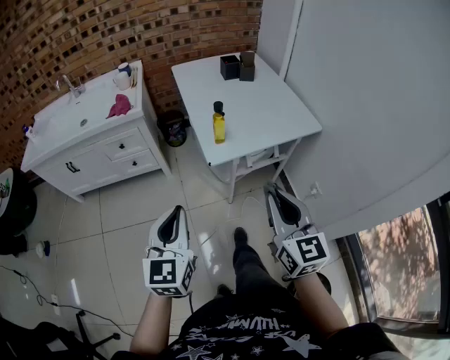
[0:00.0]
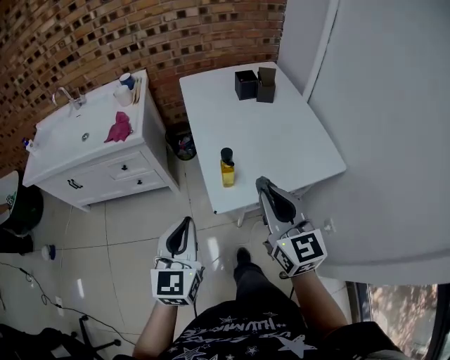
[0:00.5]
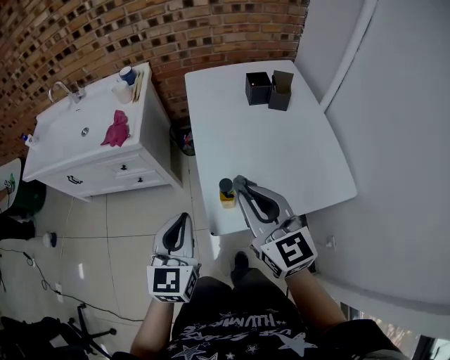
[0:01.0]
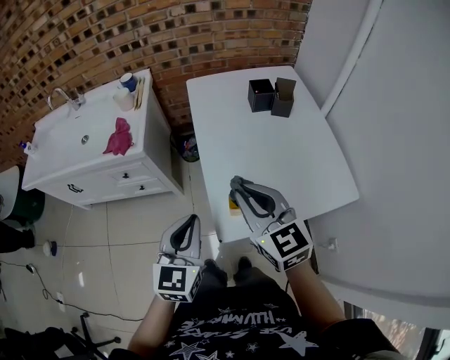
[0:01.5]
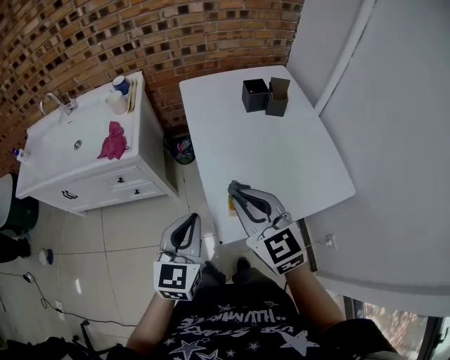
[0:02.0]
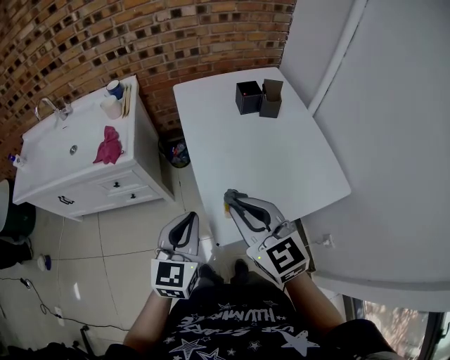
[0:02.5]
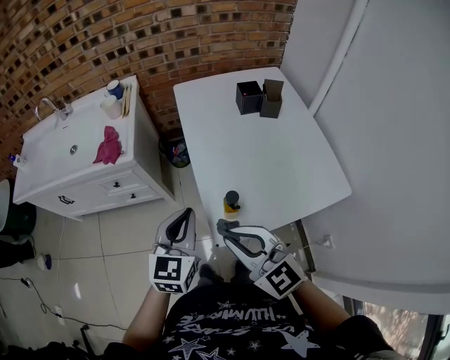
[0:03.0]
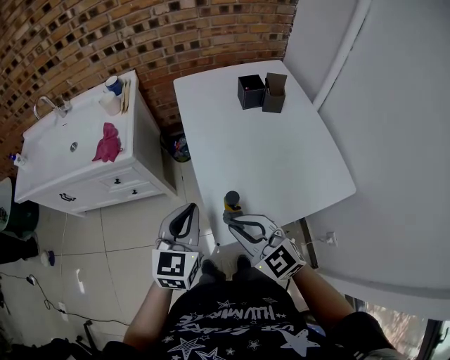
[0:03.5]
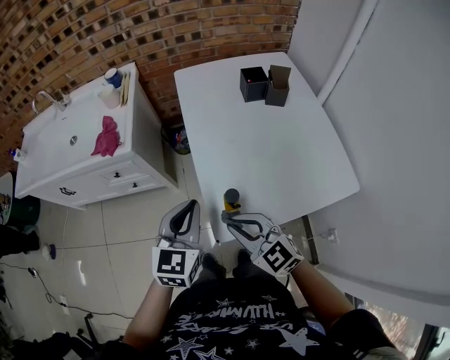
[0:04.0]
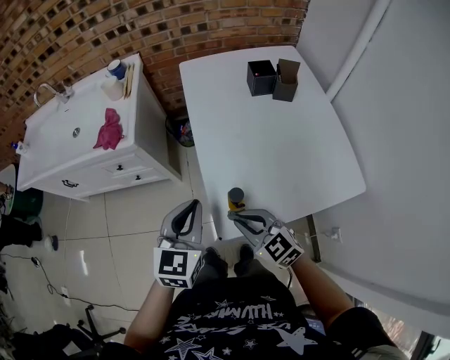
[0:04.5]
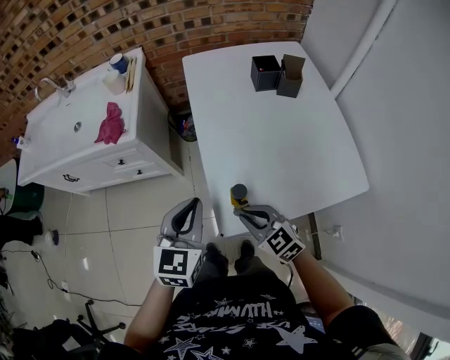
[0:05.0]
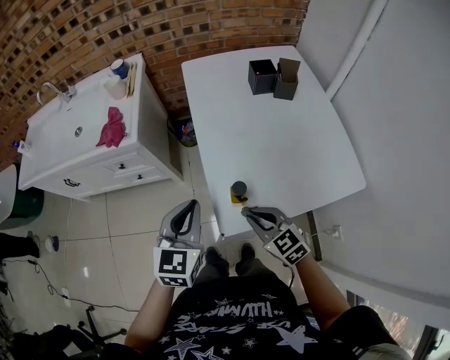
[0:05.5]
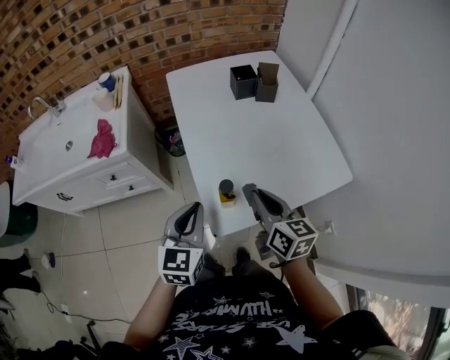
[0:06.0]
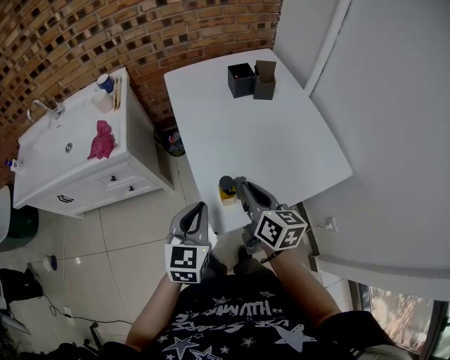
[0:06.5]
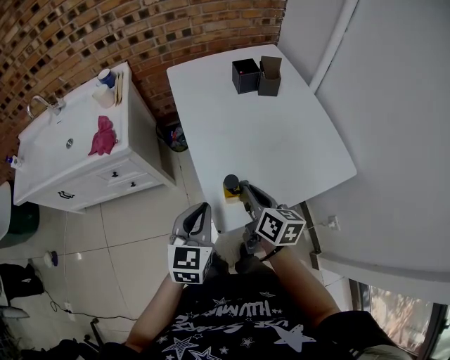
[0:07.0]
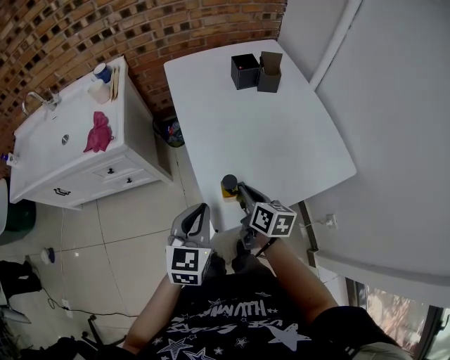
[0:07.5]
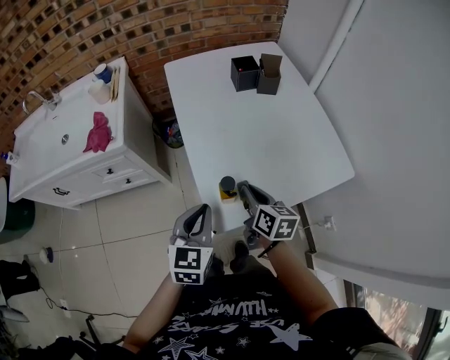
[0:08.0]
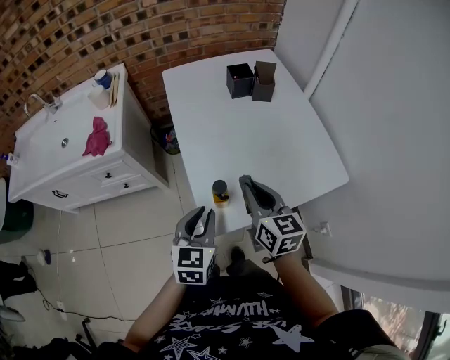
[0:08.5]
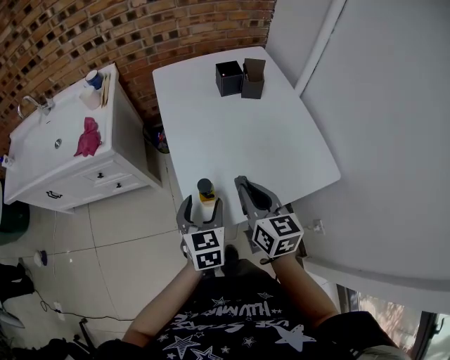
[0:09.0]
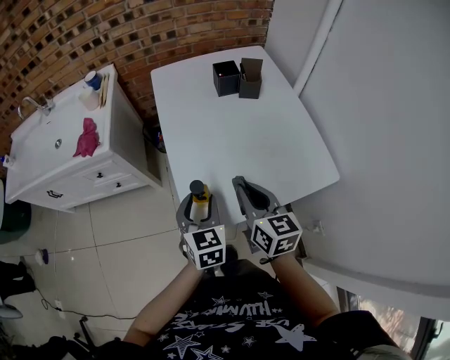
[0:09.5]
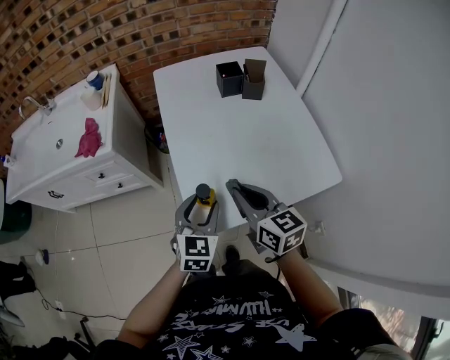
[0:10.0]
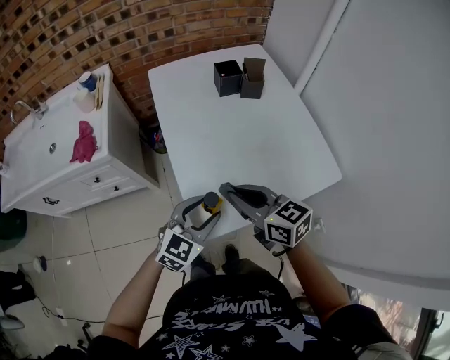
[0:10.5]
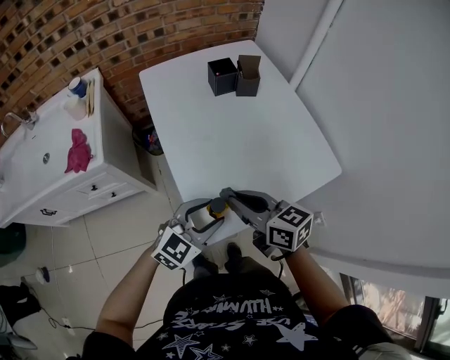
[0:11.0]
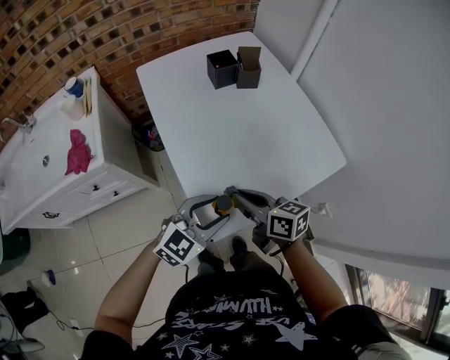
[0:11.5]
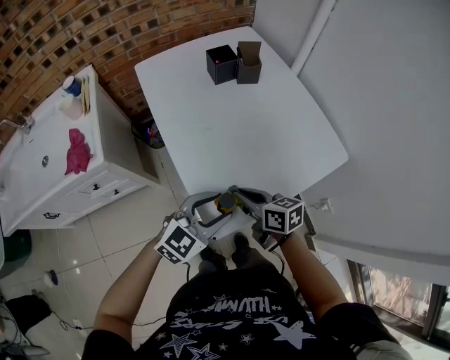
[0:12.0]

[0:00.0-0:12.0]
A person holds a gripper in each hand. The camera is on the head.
0:00.0 to 0:02.0: Both grippers move forward, about 30 cm. The right gripper changes its angle by about 30 degrees.
0:02.0 to 0:04.0: The right gripper goes about 10 cm downward, and changes its angle by about 20 degrees.
0:04.0 to 0:06.0: The right gripper heads to the right, covering roughly 10 cm, and rotates around the line of its fingers by approximately 50 degrees, clockwise from behind.
0:06.0 to 0:08.0: The right gripper travels downward by roughly 10 cm.
0:08.0 to 0:10.0: The left gripper goes some 5 cm to the right, and opens. Meanwhile the right gripper goes roughly 10 cm upward, and swivels approximately 30 degrees.
0:10.0 to 0:12.0: The left gripper rotates about 50 degrees, while the right gripper goes approximately 10 cm downward, and rotates some 20 degrees.

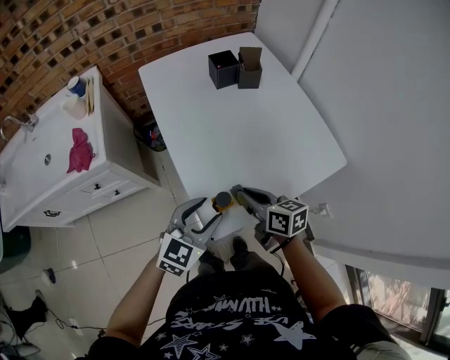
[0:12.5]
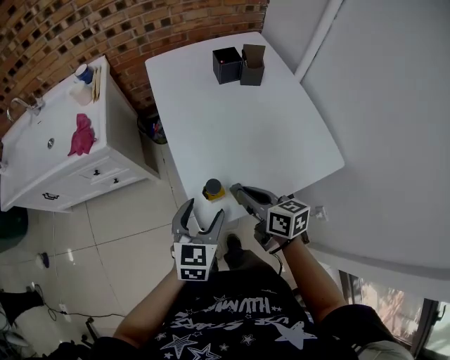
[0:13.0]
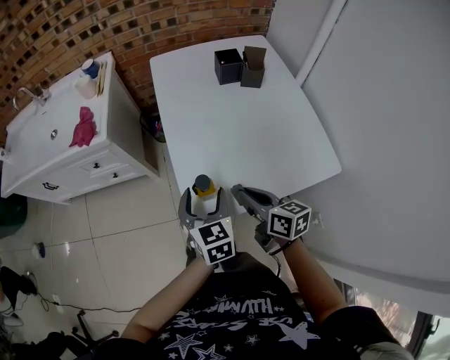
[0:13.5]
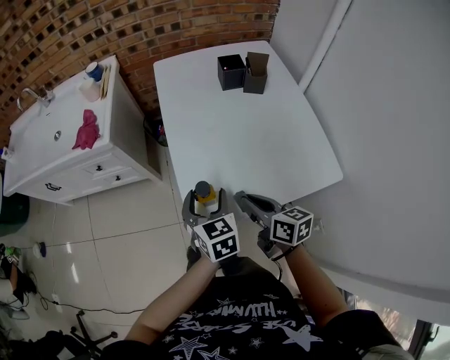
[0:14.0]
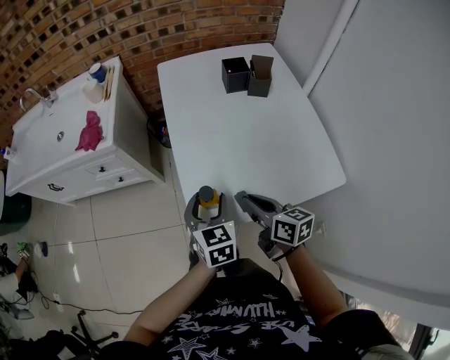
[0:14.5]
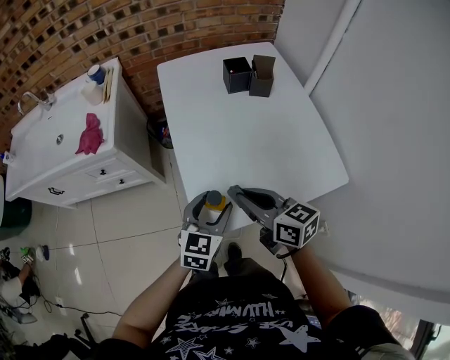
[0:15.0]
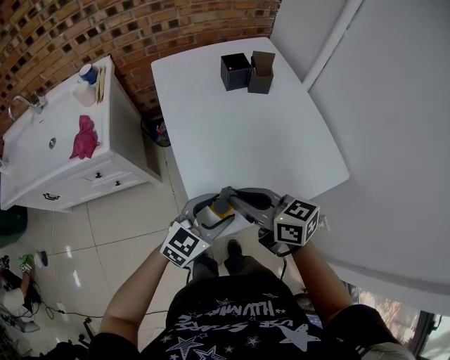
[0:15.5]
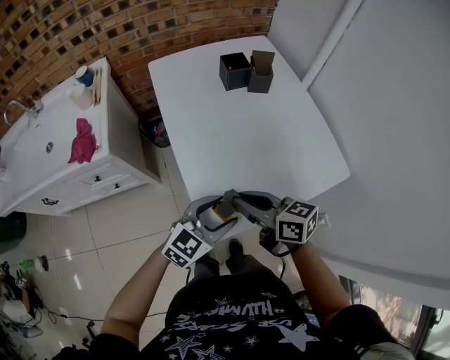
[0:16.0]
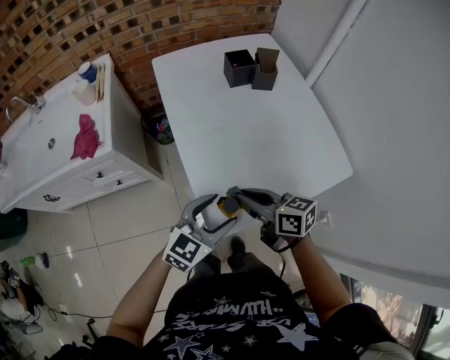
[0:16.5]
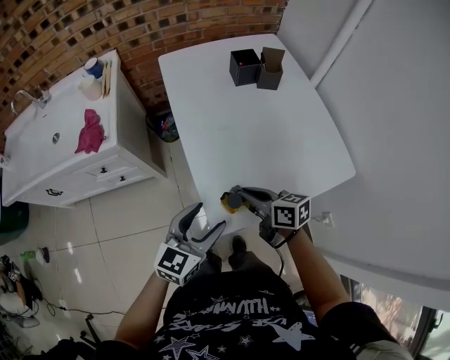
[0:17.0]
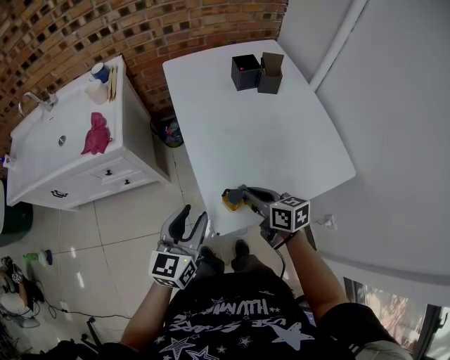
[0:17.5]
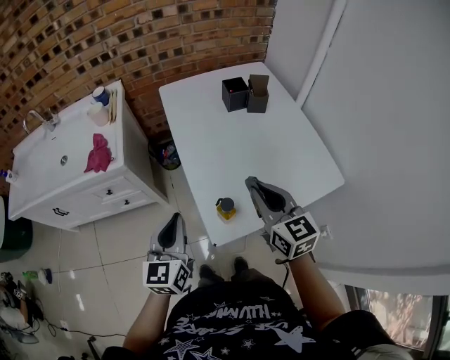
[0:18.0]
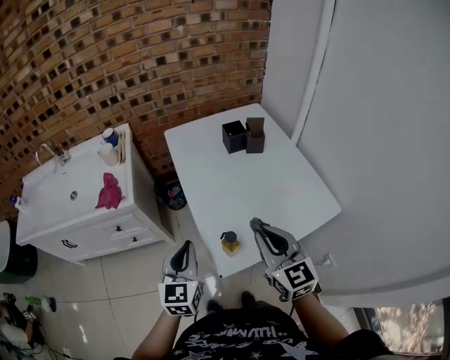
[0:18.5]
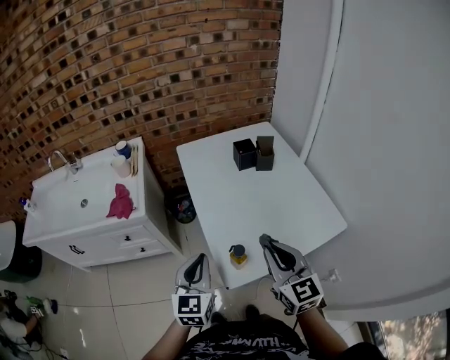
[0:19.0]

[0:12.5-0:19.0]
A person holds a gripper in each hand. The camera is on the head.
0:12.5 to 0:14.5: The left gripper rotates roughly 50 degrees.
0:14.5 to 0:17.0: The left gripper shifts by some 5 cm, and swivels approximately 40 degrees; the right gripper travels upward and back again, roughly 5 cm each way.
0:17.0 to 0:19.0: The right gripper goes roughly 20 cm upward, and turns by about 50 degrees. The left gripper is displaced upward and to the left by about 10 cm, turns by approximately 30 degrees, and closes.

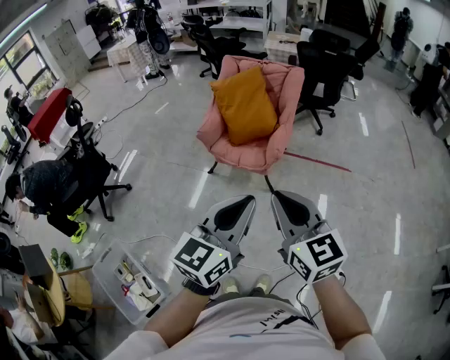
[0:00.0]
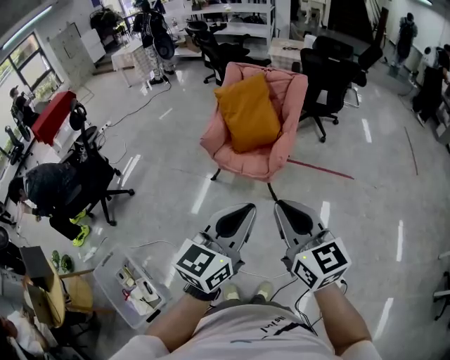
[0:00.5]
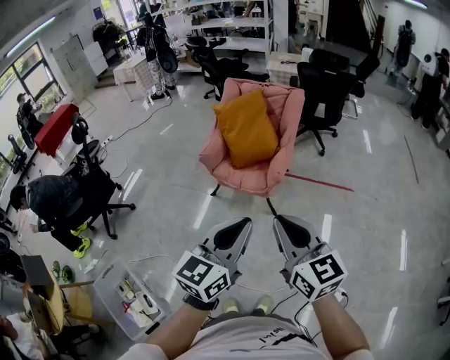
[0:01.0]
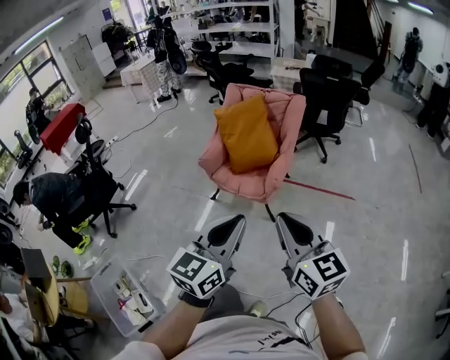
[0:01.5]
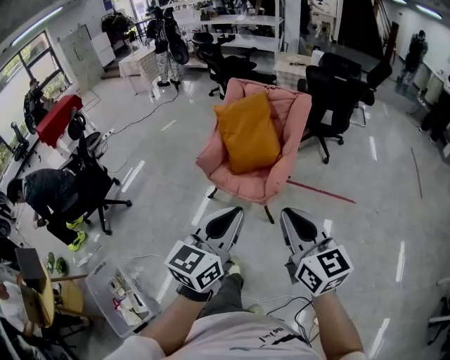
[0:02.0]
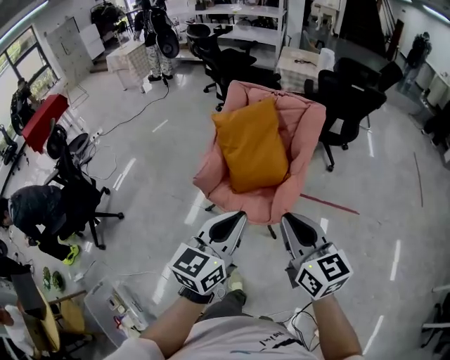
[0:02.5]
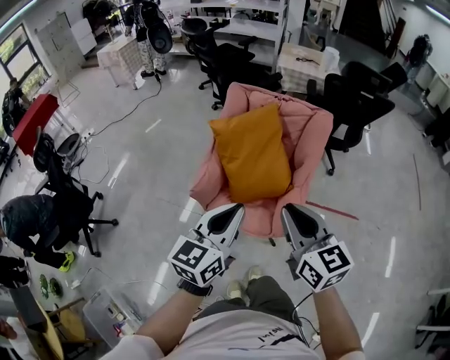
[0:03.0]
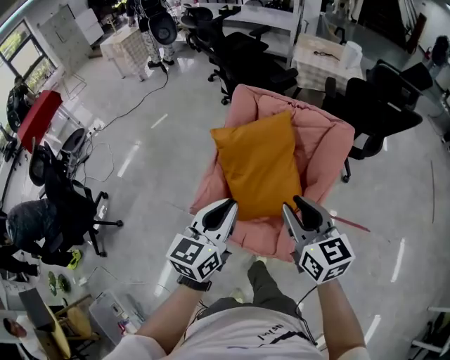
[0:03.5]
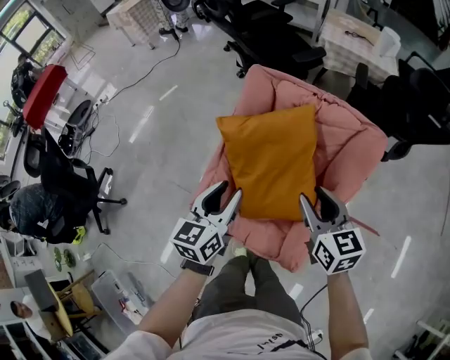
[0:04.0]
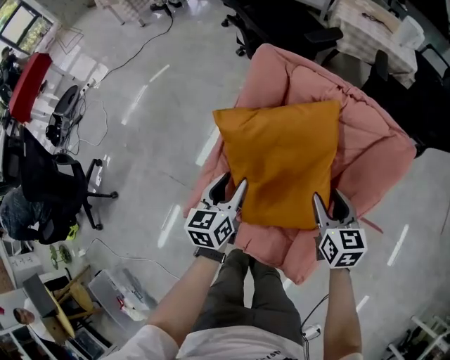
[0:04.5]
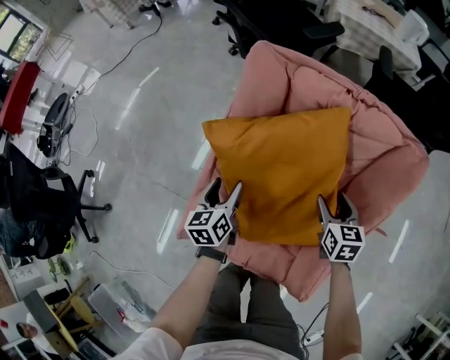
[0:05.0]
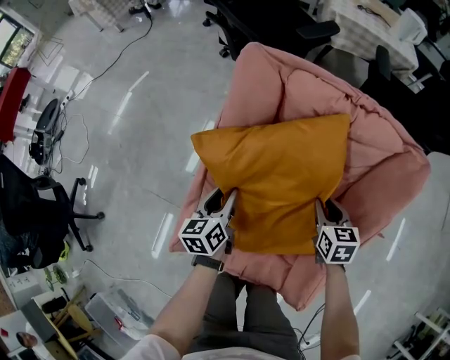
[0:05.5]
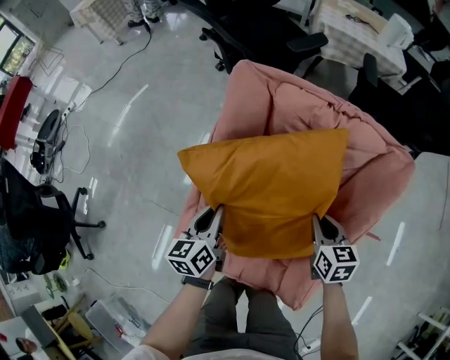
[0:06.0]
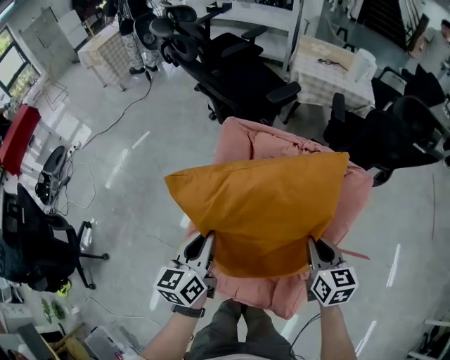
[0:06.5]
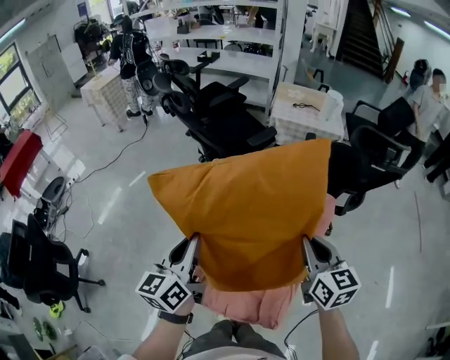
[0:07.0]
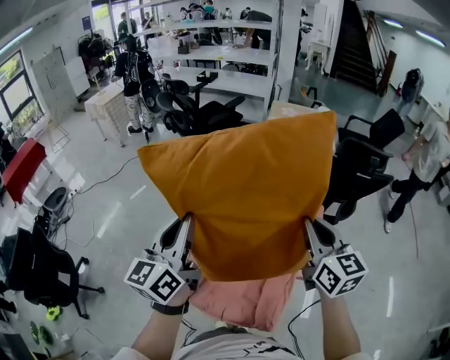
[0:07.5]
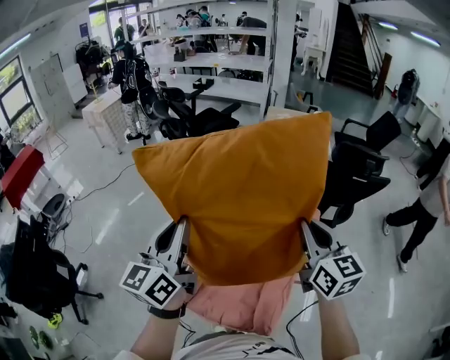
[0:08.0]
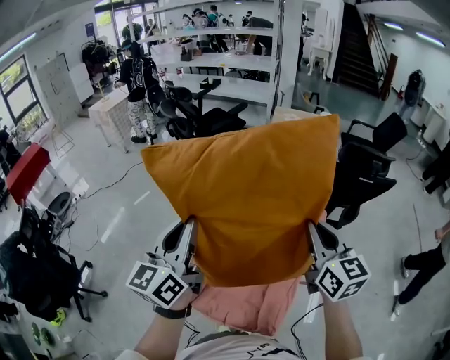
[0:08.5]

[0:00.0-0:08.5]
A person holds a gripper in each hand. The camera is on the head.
0:00.0 to 0:02.0: The right gripper shifts about 15 cm forward and to the right. The left gripper goes approximately 10 cm forward.
0:02.0 to 0:04.0: The two grippers travel together, forward, some 70 cm. The right gripper swivels about 20 degrees, and opens its fingers; the left gripper swivels roughly 20 degrees, and opens its fingers.
0:04.0 to 0:06.5: The left gripper heads forward, covering about 10 cm, travels downward and back again, about 30 cm each way, and opens, then closes once more. Meanwhile the right gripper moves forward and to the right, roughly 10 cm, reaches some 30 cm downward, then returns, and closes up.
0:06.5 to 0:08.5: The grippers both shift upward by roughly 35 cm. The left gripper changes its angle by roughly 30 degrees; the right gripper swivels about 30 degrees.
